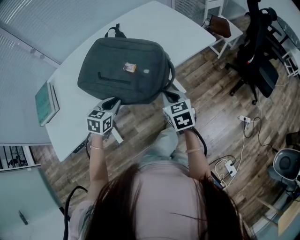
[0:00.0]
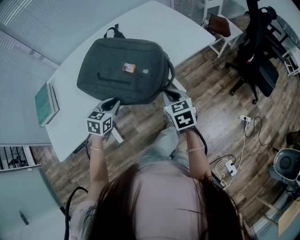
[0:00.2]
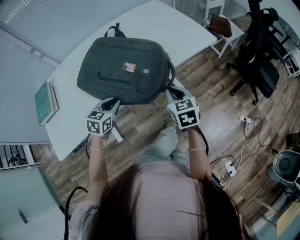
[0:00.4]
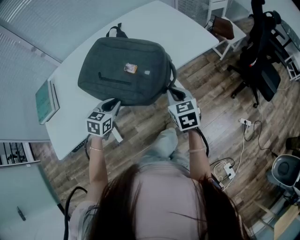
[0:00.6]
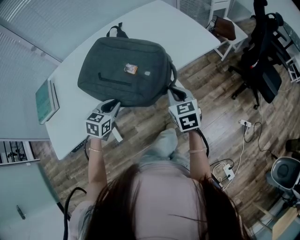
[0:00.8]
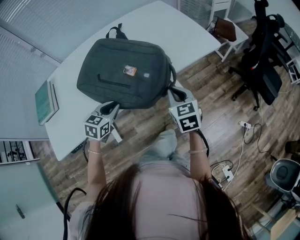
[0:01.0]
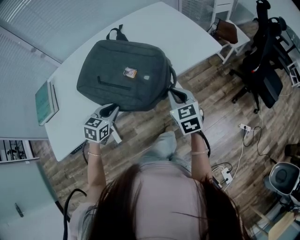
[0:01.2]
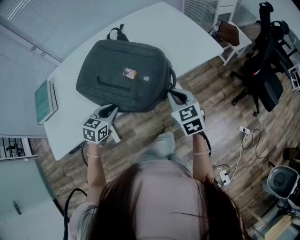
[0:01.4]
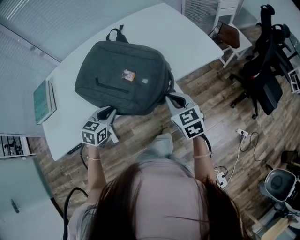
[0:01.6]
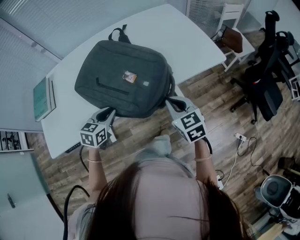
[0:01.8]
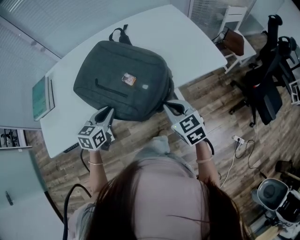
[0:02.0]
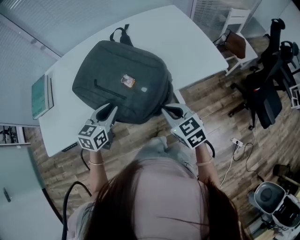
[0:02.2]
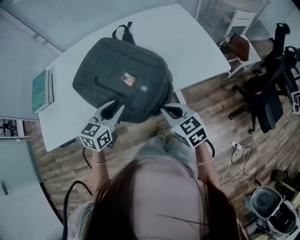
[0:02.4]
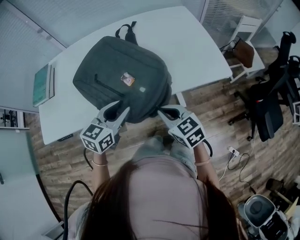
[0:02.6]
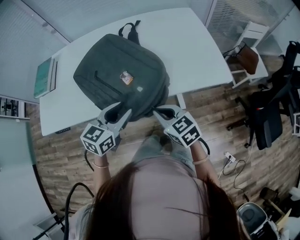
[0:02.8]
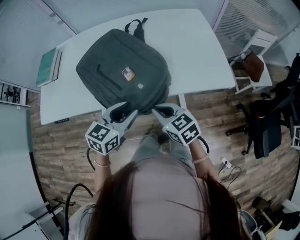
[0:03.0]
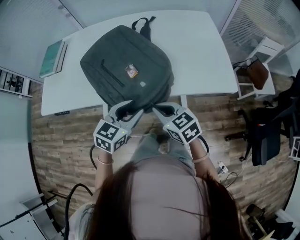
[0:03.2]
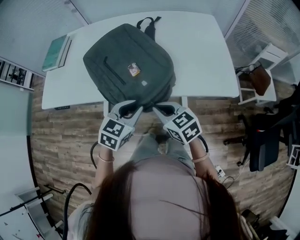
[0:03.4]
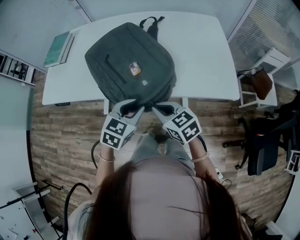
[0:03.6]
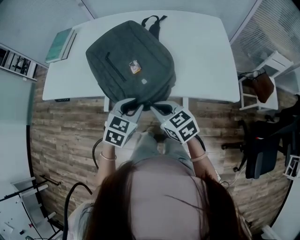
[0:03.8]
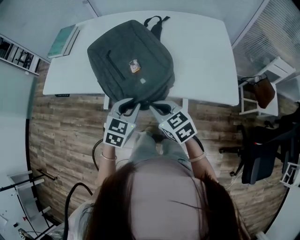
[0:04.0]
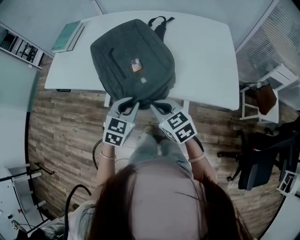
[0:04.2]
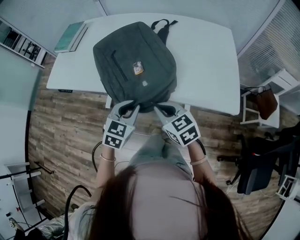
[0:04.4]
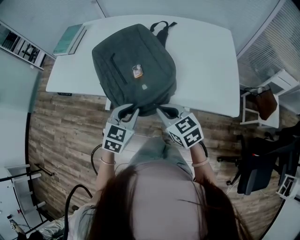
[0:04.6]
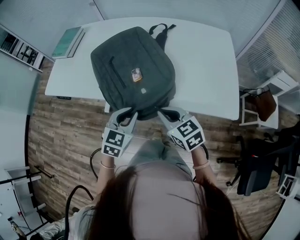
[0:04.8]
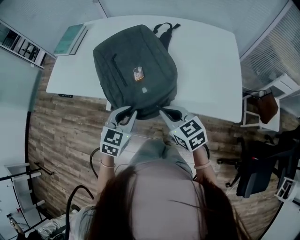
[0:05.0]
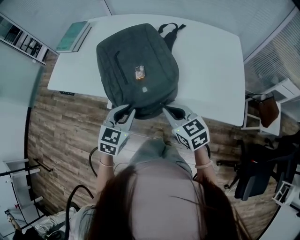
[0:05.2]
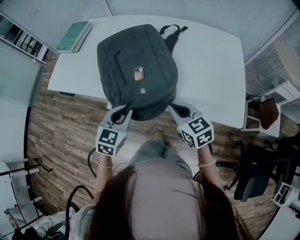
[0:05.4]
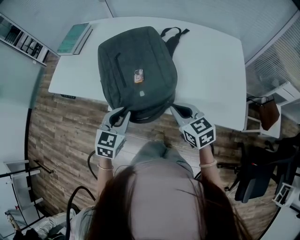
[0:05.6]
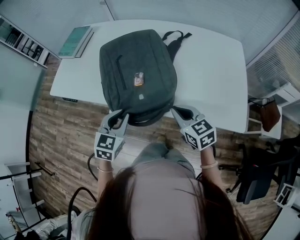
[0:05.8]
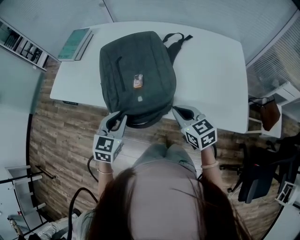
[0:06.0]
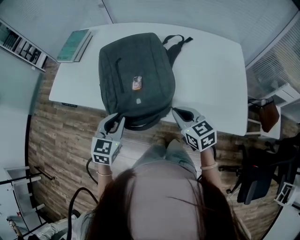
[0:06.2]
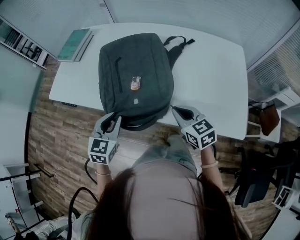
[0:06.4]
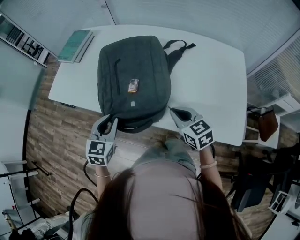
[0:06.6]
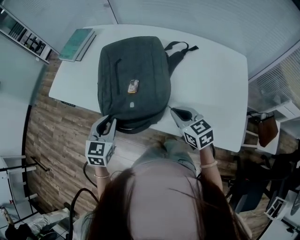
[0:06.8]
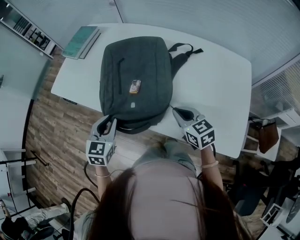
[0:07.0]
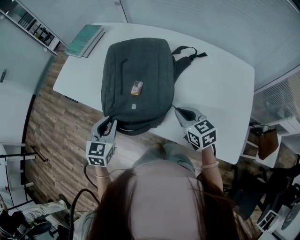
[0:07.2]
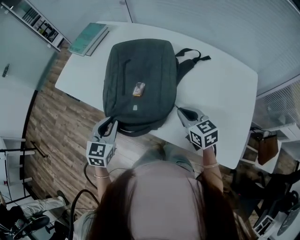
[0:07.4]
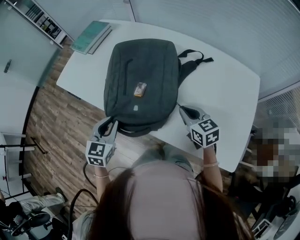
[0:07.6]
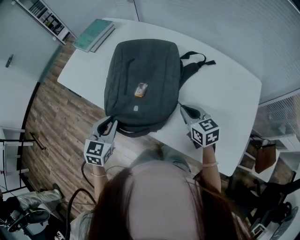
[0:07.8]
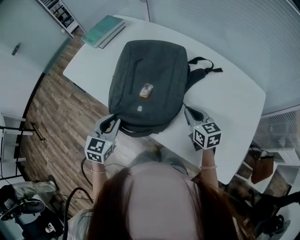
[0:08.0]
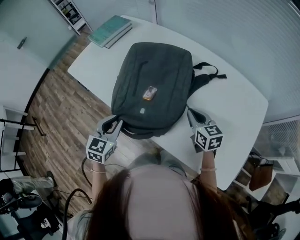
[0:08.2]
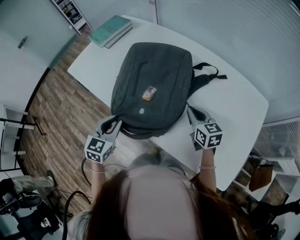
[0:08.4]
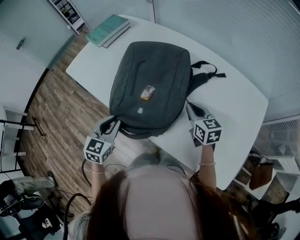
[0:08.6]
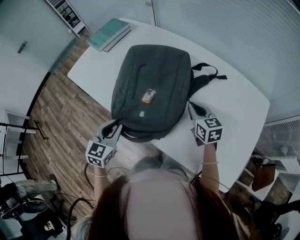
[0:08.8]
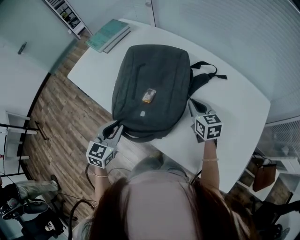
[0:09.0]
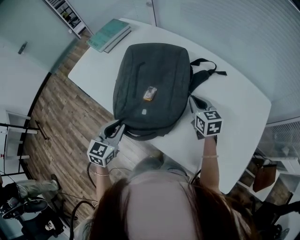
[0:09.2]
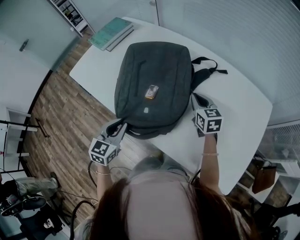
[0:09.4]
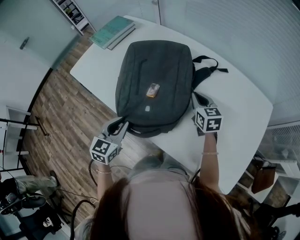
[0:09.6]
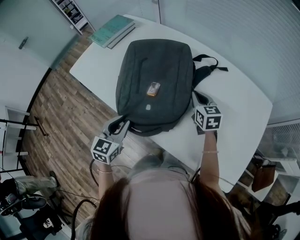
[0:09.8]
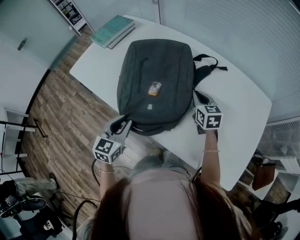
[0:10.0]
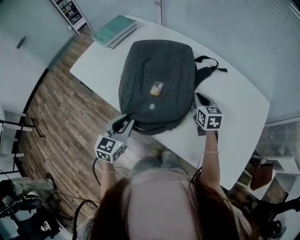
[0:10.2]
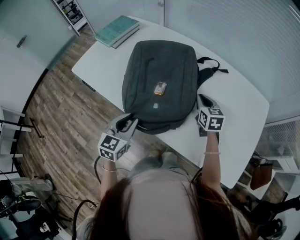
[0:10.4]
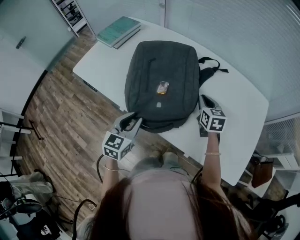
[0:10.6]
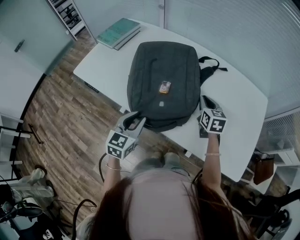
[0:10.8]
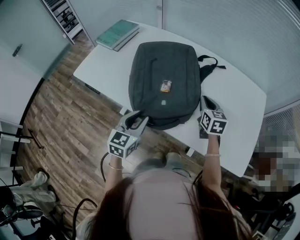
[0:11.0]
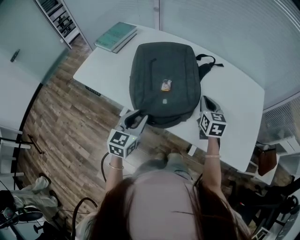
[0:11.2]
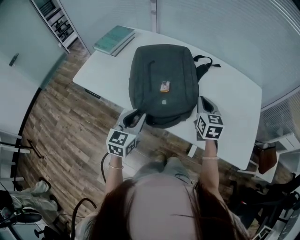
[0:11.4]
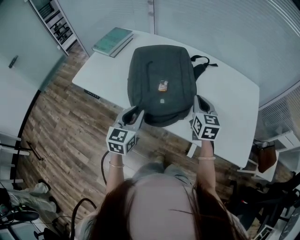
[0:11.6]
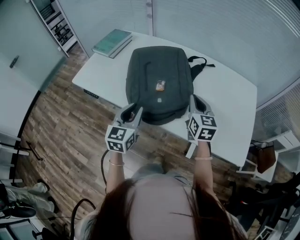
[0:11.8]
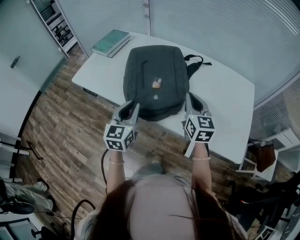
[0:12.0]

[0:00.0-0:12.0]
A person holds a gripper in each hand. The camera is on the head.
0:00.0 to 0:01.6: The right gripper ends up some 5 cm from where it was.
0:01.6 to 0:03.0: The right gripper turns by some 40 degrees. The left gripper shifts about 20 cm to the right and upward, changes its angle by approximately 20 degrees, and opens up.
0:03.0 to 0:04.4: The left gripper turns by some 30 degrees, and closes up.
0:04.4 to 0:06.0: The right gripper shifts approximately 10 cm forward. Meanwhile the left gripper goes about 10 cm to the left and forward.
0:06.0 to 0:07.6: The right gripper is displaced forward and to the right by some 15 cm.
0:07.6 to 0:09.0: The right gripper goes roughly 10 cm forward.
0:09.0 to 0:10.4: The grippers make only small movements.
0:10.4 to 0:12.0: The right gripper goes roughly 20 cm backward and upward, and swivels roughly 20 degrees. The left gripper travels upward by about 10 cm.

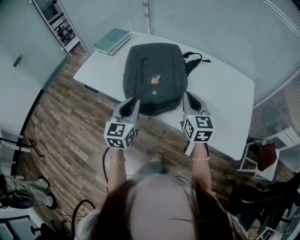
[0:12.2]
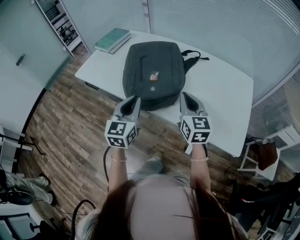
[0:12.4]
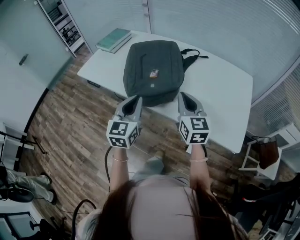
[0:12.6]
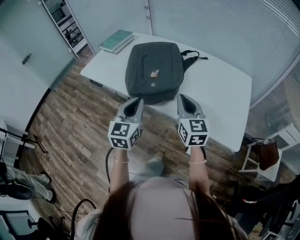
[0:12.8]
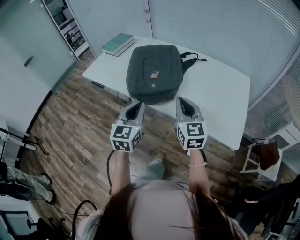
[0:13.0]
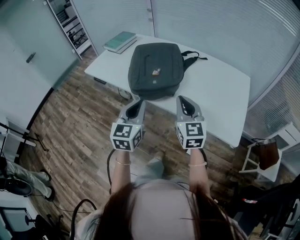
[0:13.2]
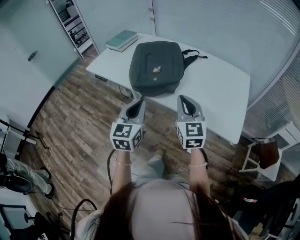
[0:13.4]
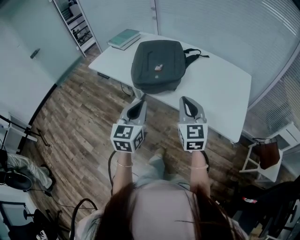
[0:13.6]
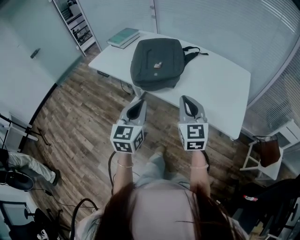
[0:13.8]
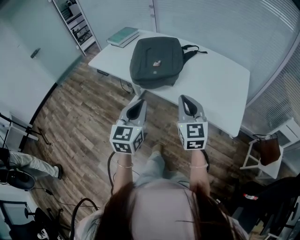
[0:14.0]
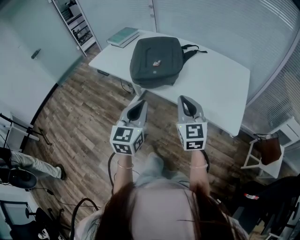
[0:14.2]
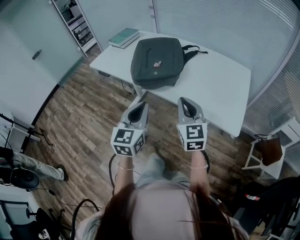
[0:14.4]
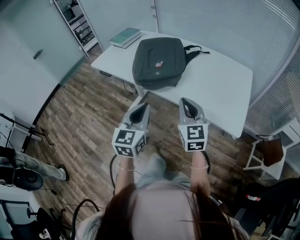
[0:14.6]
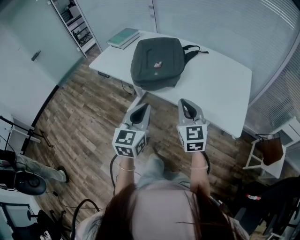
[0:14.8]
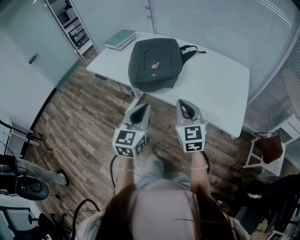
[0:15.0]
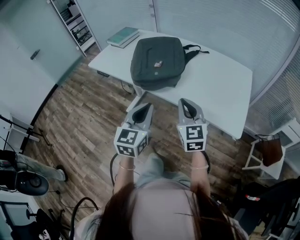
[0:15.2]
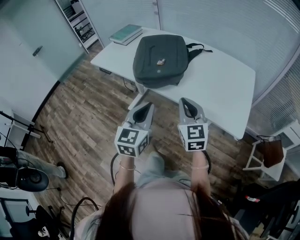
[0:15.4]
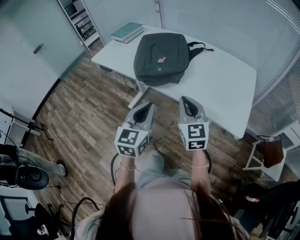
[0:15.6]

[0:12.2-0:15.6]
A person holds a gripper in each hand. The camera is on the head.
0:12.2 to 0:13.8: Both grippers travel together backward, approximately 20 cm.
0:13.8 to 0:15.6: There are only small adjustments of the grippers.

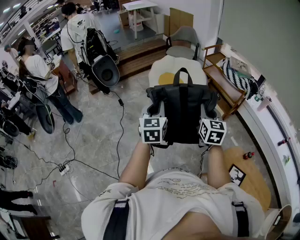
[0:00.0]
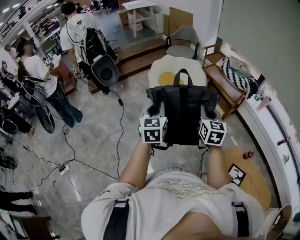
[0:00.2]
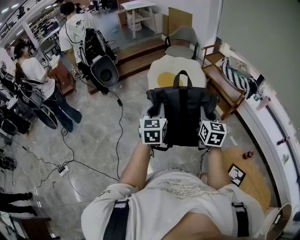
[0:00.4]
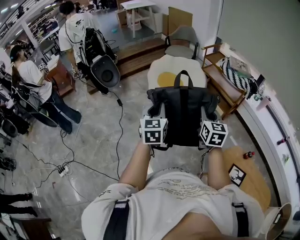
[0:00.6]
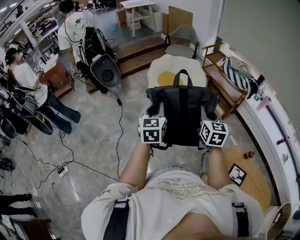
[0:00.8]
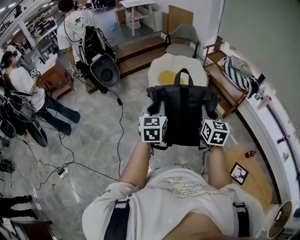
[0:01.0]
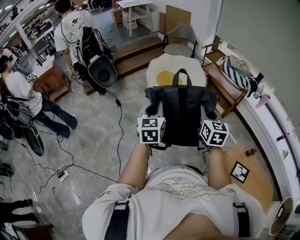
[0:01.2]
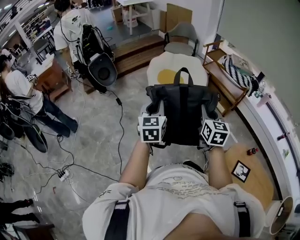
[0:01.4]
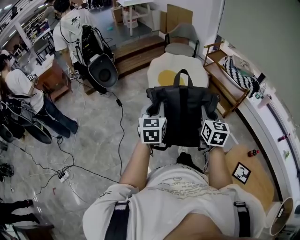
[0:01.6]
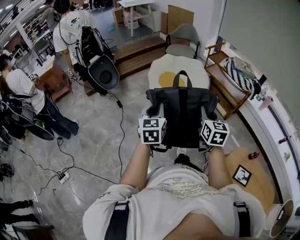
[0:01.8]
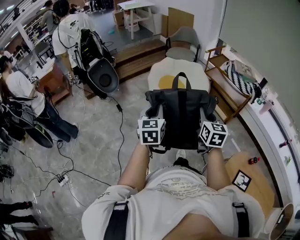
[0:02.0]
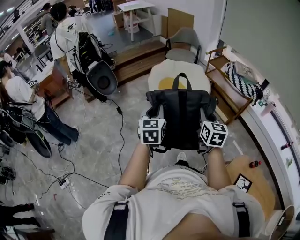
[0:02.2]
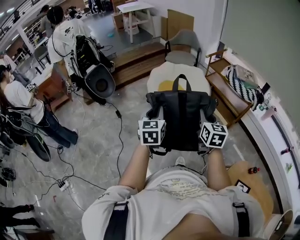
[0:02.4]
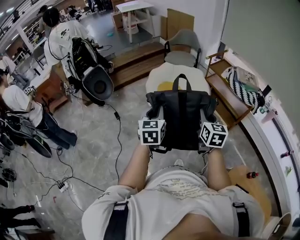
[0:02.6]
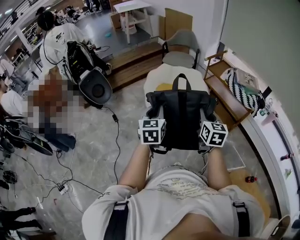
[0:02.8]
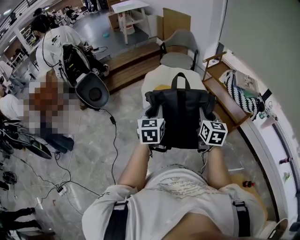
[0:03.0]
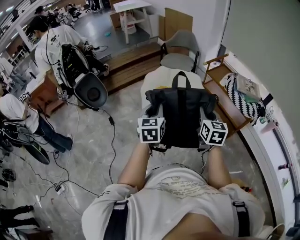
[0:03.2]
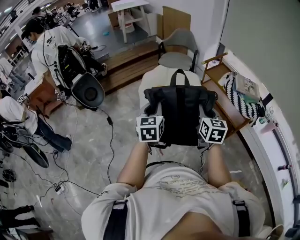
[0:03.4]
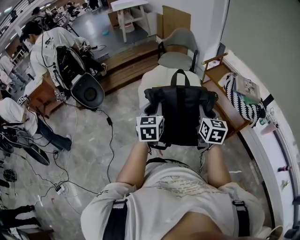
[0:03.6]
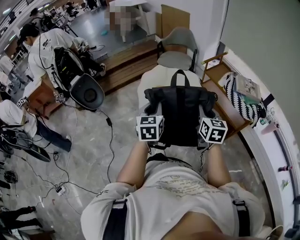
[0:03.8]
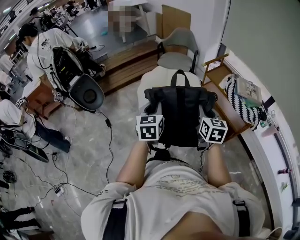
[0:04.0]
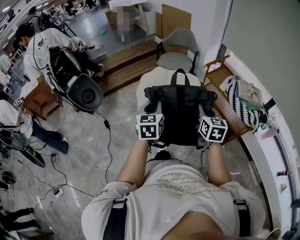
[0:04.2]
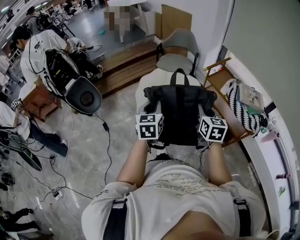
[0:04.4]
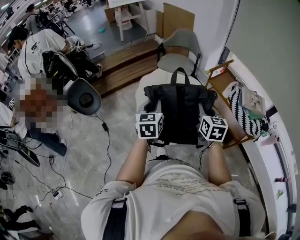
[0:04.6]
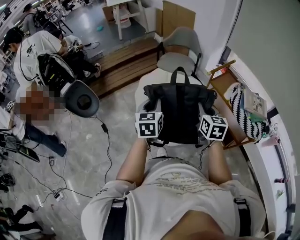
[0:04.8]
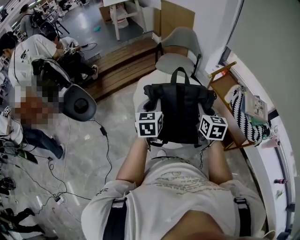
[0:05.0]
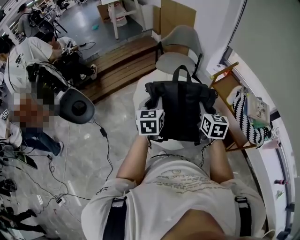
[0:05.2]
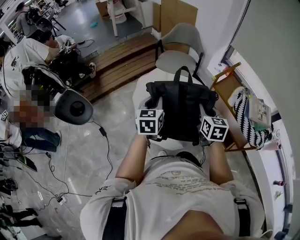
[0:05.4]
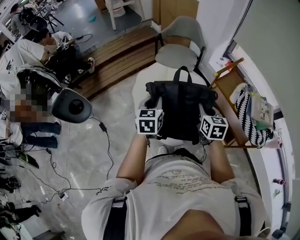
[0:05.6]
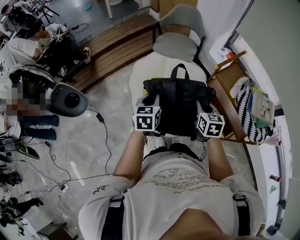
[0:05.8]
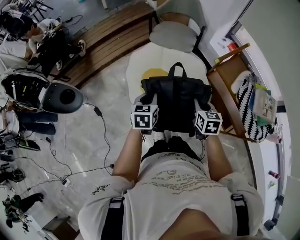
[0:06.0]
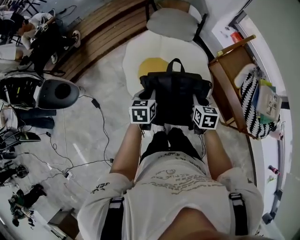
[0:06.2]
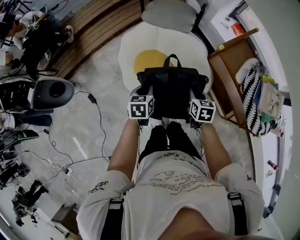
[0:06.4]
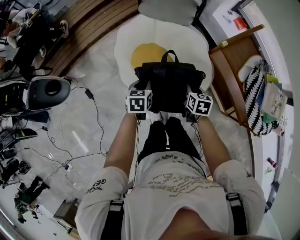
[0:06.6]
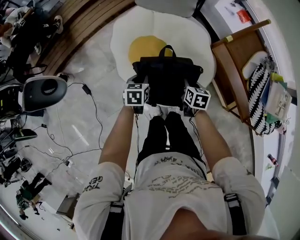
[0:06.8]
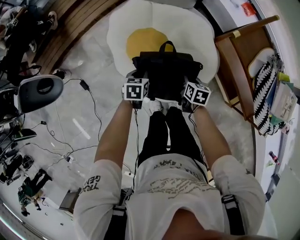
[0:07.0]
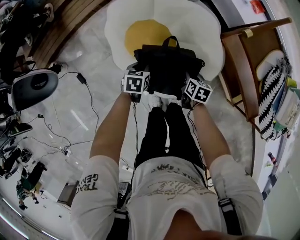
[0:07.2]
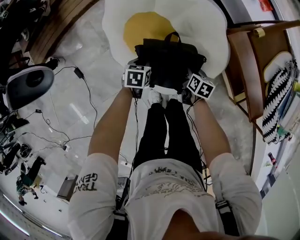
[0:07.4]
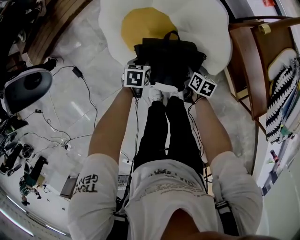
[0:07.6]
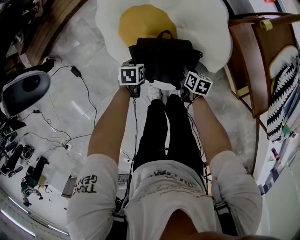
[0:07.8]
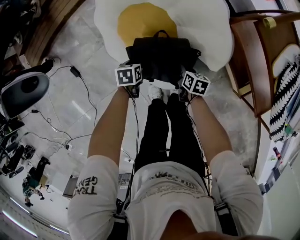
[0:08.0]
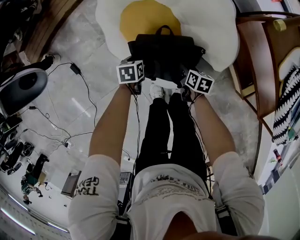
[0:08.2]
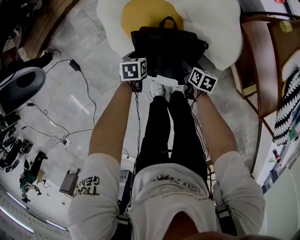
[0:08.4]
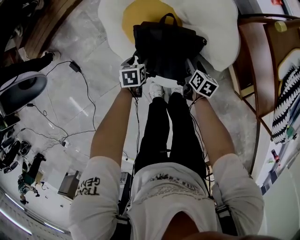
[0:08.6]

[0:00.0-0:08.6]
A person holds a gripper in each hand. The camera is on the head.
0:00.0 to 0:01.4: Both grippers travel together to the left, approximately 10 cm.
0:01.4 to 0:02.8: The two grippers go some 25 cm forward.
0:02.8 to 0:04.4: The two grippers go approximately 25 cm forward.
0:04.4 to 0:05.8: Both grippers move forward and downward, approximately 25 cm.
0:05.8 to 0:07.2: The grippers both shift downward by about 40 cm. The right gripper swivels approximately 30 degrees, while the left gripper rotates approximately 30 degrees.
0:07.2 to 0:08.6: The left gripper moves downward and backward, approximately 15 cm, and opens, while the right gripper heads downward, covering roughly 10 cm, and opens up.
